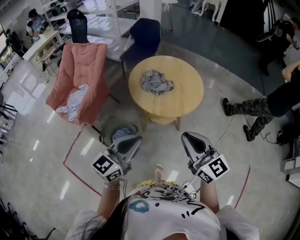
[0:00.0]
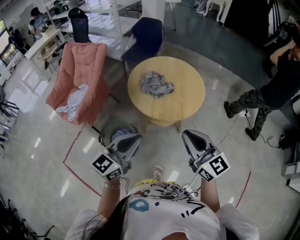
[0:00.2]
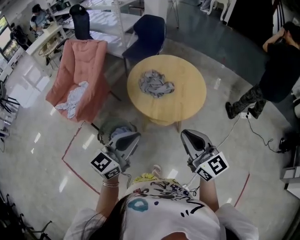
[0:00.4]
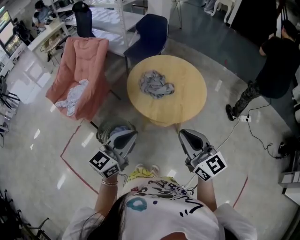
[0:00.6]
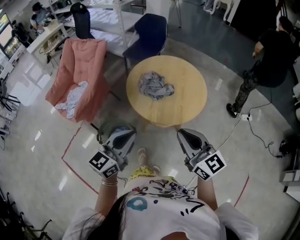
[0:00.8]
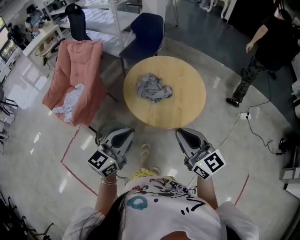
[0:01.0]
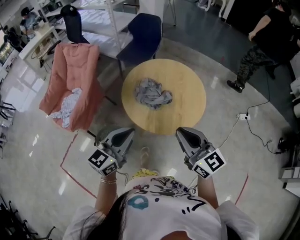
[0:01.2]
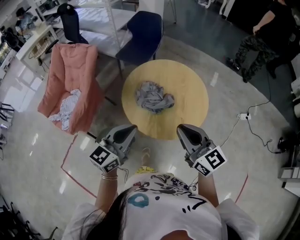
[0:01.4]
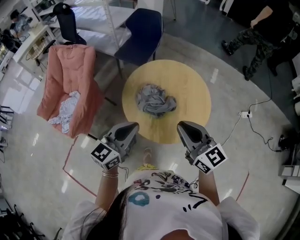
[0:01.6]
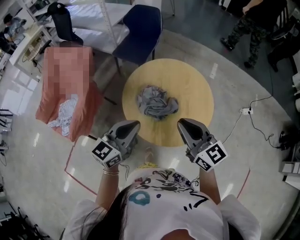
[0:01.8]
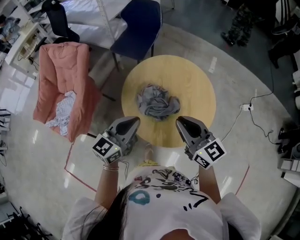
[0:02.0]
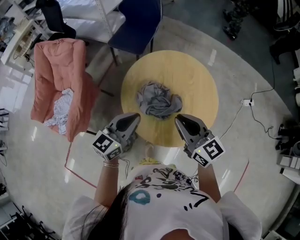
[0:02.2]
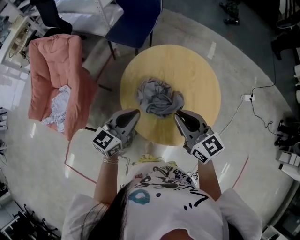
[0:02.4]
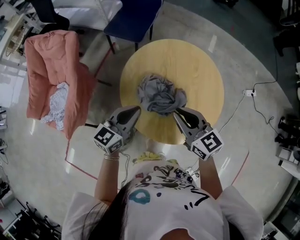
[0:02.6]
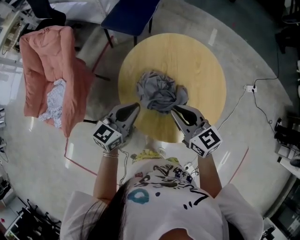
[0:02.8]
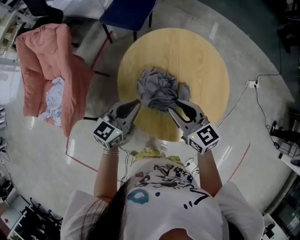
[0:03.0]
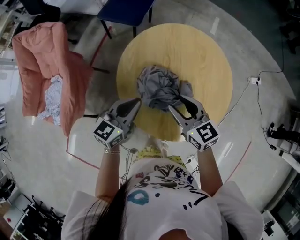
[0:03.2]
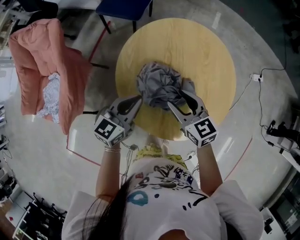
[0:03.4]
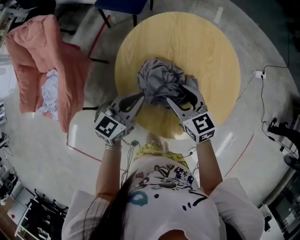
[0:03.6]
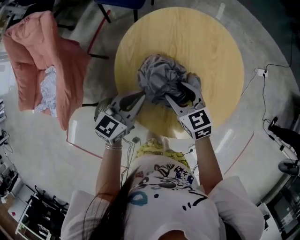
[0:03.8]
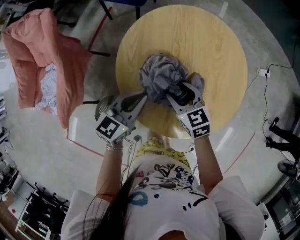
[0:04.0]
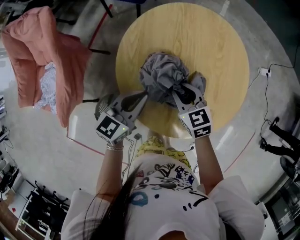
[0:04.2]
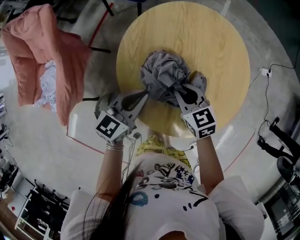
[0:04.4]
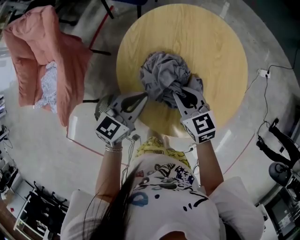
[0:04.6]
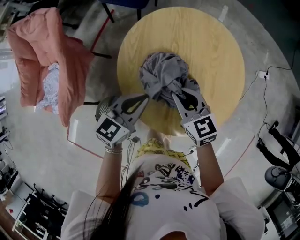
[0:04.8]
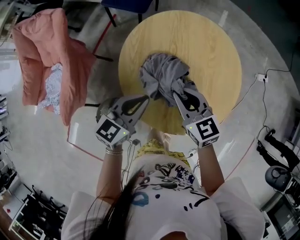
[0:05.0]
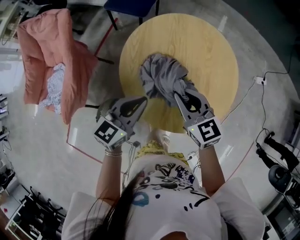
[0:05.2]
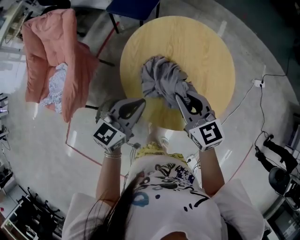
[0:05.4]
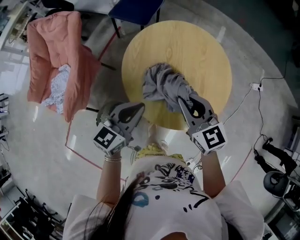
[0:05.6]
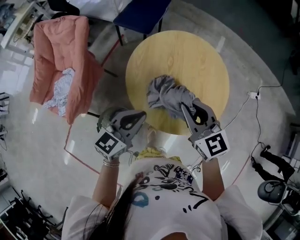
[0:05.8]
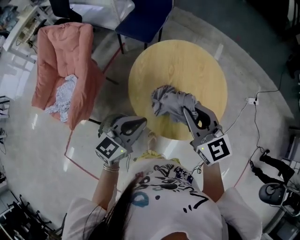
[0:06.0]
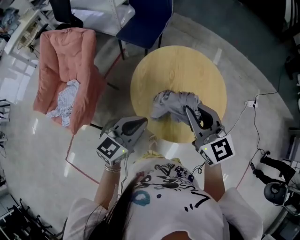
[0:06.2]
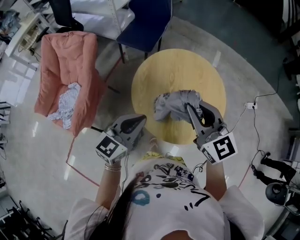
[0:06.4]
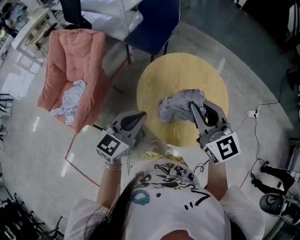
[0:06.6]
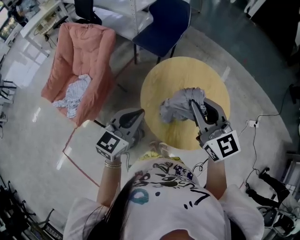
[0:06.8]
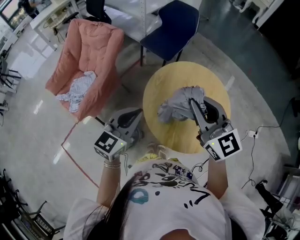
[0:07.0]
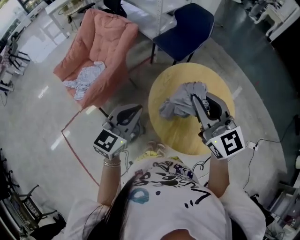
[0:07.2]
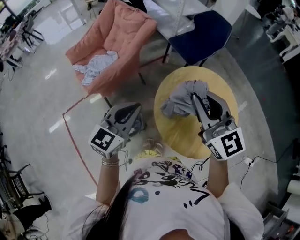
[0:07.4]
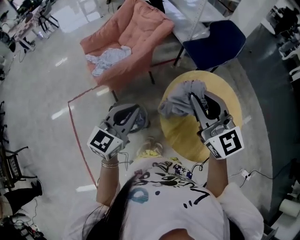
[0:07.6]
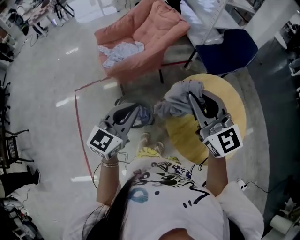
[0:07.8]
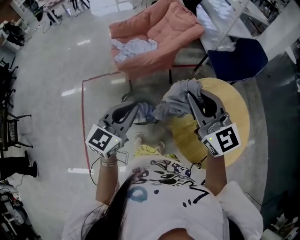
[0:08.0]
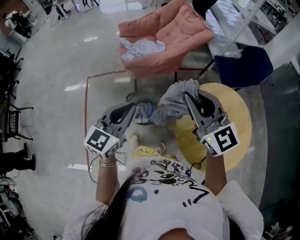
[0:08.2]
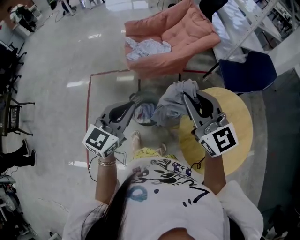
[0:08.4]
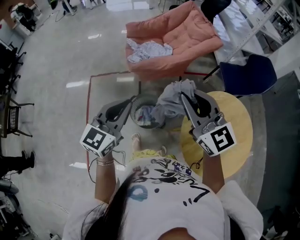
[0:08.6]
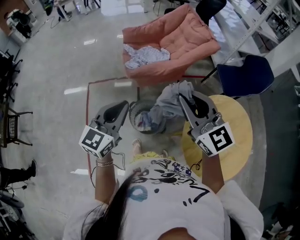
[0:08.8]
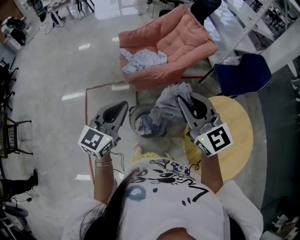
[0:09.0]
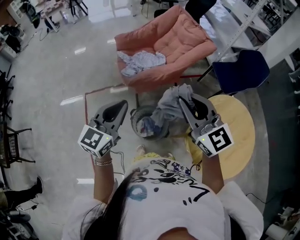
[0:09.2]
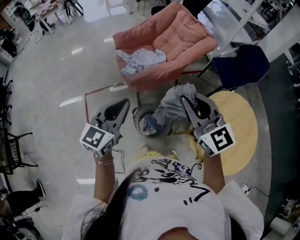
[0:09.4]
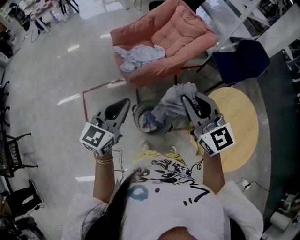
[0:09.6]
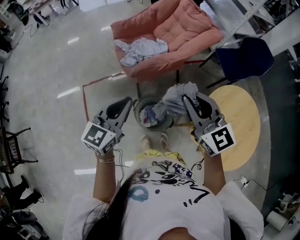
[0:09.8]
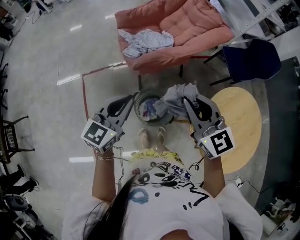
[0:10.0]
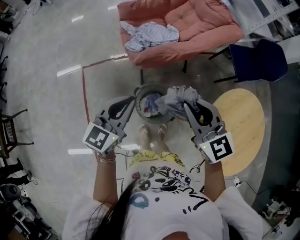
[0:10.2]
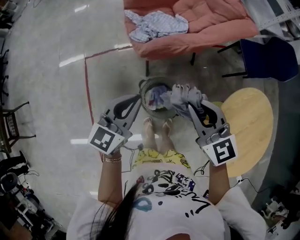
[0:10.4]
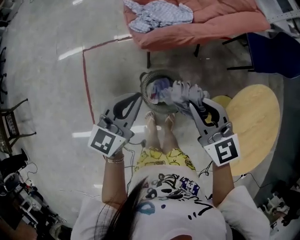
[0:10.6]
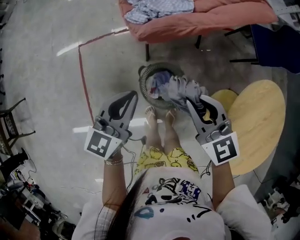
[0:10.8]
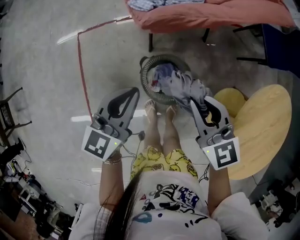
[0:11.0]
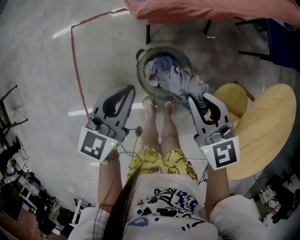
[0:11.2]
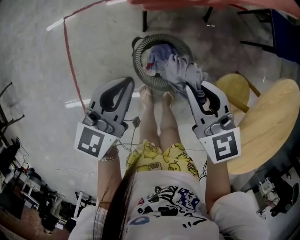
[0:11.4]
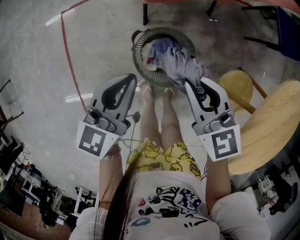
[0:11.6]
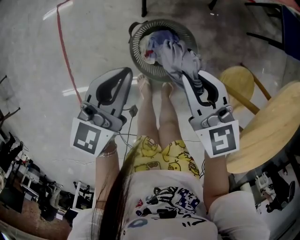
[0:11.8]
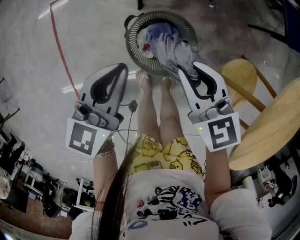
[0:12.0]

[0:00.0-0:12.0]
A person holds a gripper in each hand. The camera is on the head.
0:00.0 to 0:01.6: The grippers both shift forward by approximately 30 cm.
0:01.6 to 0:03.0: The left gripper heads forward and downward, covering approximately 25 cm, while the right gripper heads downward, forward and to the left, covering some 25 cm, and turns by about 20 degrees.
0:03.0 to 0:04.4: The right gripper heads downward, covering some 15 cm, and opens and closes again, while the left gripper is displaced downward by roughly 10 cm.
0:04.4 to 0:06.0: The right gripper travels upward by about 25 cm, and turns by about 30 degrees. Meanwhile the left gripper is displaced upward and backward by approximately 20 cm.
0:06.0 to 0:07.6: The right gripper travels upward by about 10 cm, and changes its angle by about 40 degrees. The left gripper moves approximately 15 cm, and swivels approximately 50 degrees.
0:07.6 to 0:09.0: The left gripper travels to the left by some 20 cm, and changes its angle by about 20 degrees; the right gripper travels to the left and forward by some 25 cm.
0:09.0 to 0:10.4: The right gripper shifts about 20 cm downward, to the left and forward. Meanwhile the left gripper travels downward and forward by some 15 cm.
0:10.4 to 0:12.0: The grippers both shift downward by some 25 cm.

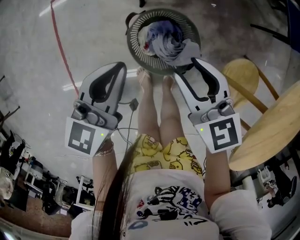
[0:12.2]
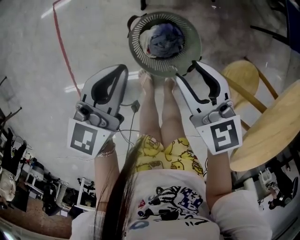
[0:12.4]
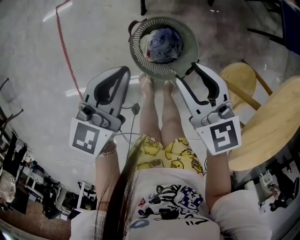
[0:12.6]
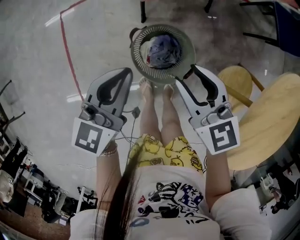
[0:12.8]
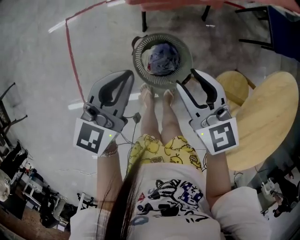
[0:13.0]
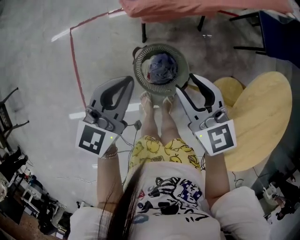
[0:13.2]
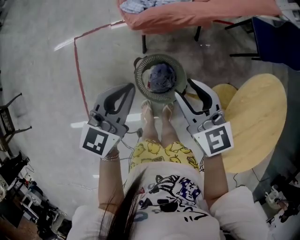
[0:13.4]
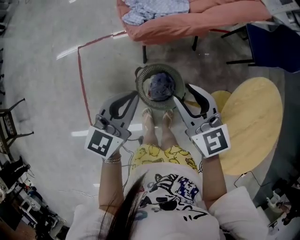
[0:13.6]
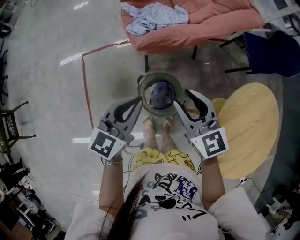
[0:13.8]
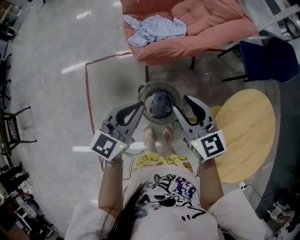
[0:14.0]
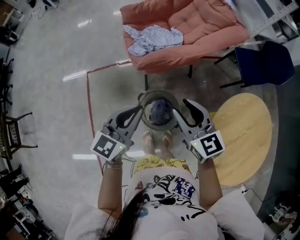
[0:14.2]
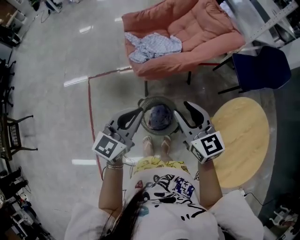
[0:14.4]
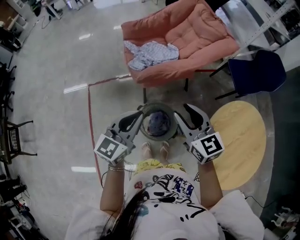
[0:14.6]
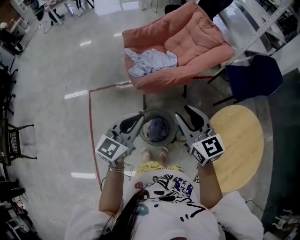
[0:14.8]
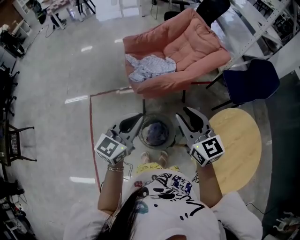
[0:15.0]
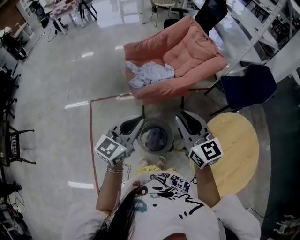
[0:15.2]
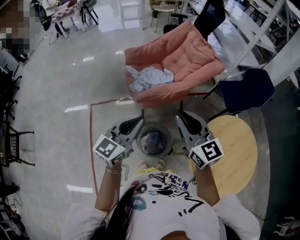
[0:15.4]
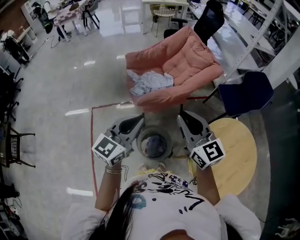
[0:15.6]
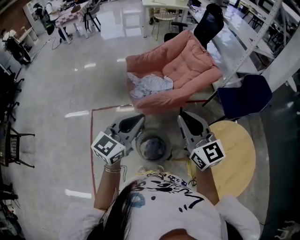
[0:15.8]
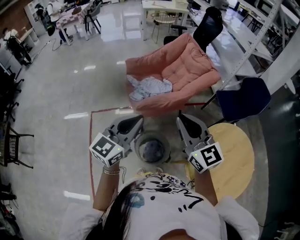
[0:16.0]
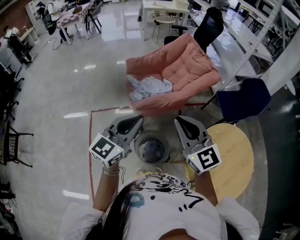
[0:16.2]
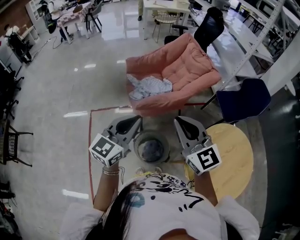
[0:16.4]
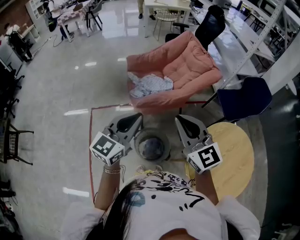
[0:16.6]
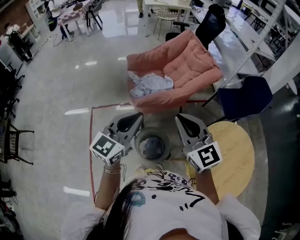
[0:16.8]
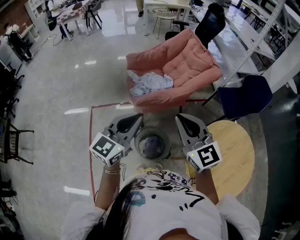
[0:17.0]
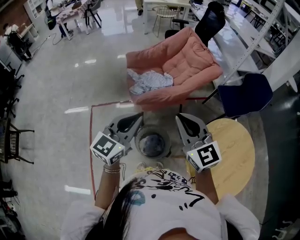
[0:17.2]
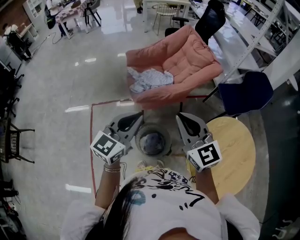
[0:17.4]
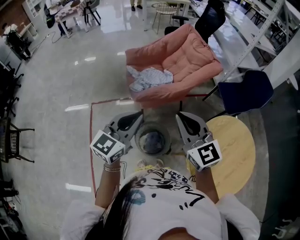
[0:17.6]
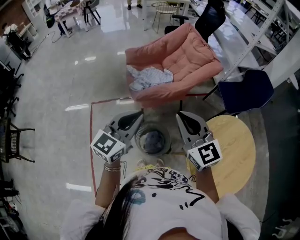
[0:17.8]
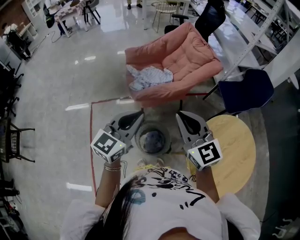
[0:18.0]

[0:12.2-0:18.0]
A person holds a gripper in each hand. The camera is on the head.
0:12.2 to 0:13.6: The grippers both shift upward by about 20 cm.
0:13.6 to 0:15.0: The grippers both shift upward by approximately 15 cm.
0:15.0 to 0:16.6: Both grippers move upward, some 10 cm. The right gripper closes.
0:16.6 to 0:18.0: The grippers move only a little.

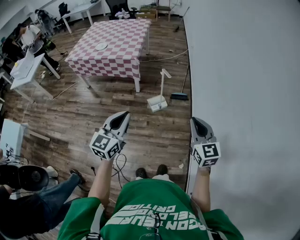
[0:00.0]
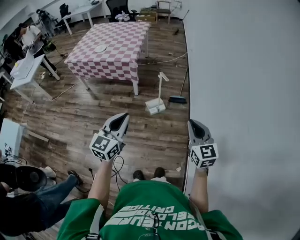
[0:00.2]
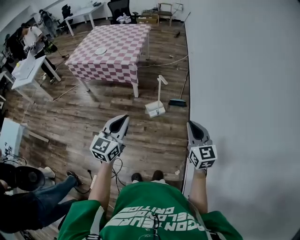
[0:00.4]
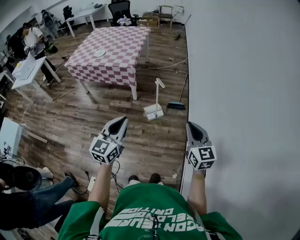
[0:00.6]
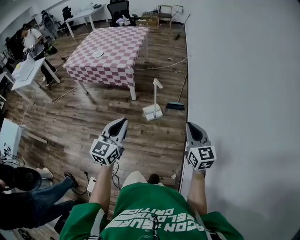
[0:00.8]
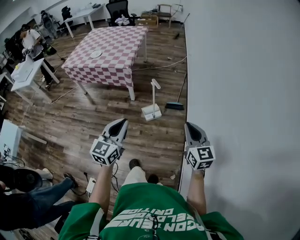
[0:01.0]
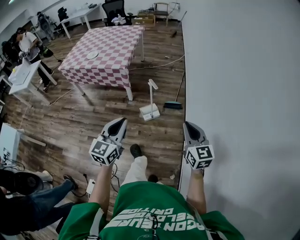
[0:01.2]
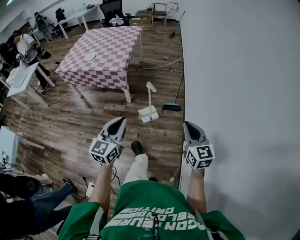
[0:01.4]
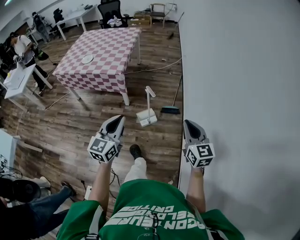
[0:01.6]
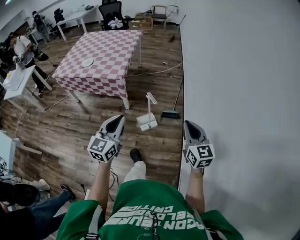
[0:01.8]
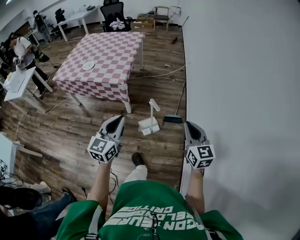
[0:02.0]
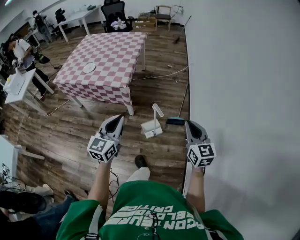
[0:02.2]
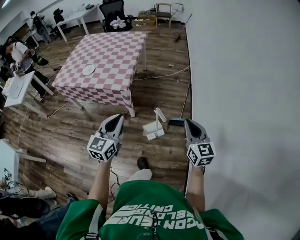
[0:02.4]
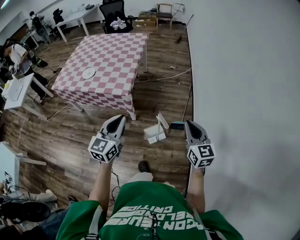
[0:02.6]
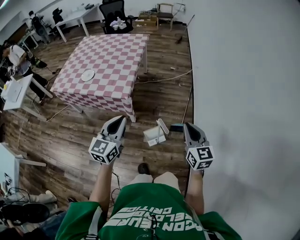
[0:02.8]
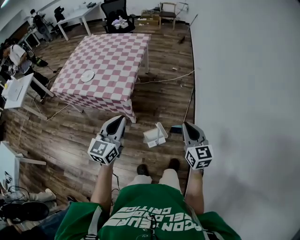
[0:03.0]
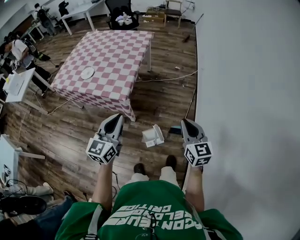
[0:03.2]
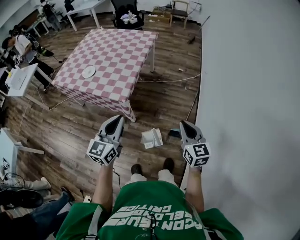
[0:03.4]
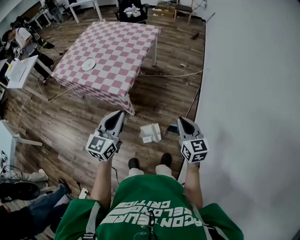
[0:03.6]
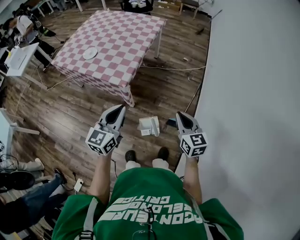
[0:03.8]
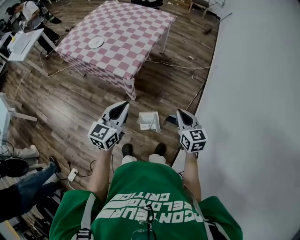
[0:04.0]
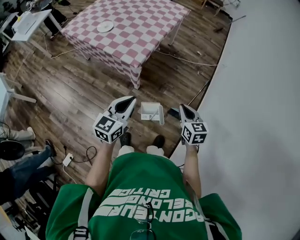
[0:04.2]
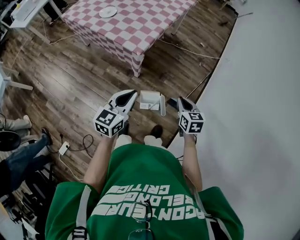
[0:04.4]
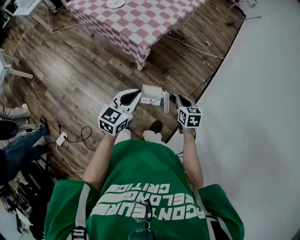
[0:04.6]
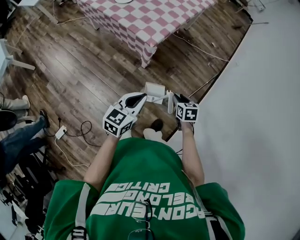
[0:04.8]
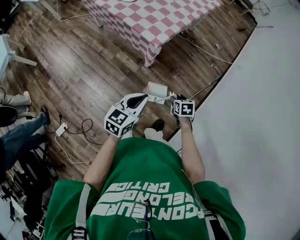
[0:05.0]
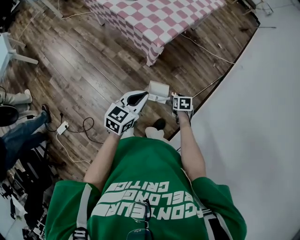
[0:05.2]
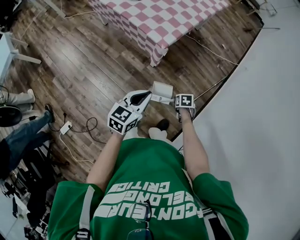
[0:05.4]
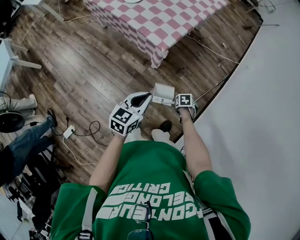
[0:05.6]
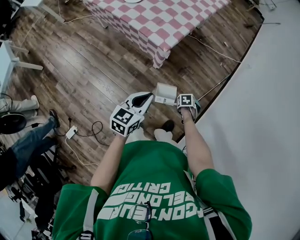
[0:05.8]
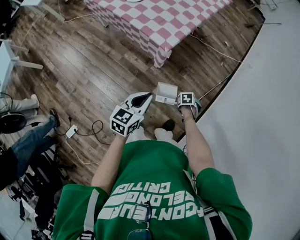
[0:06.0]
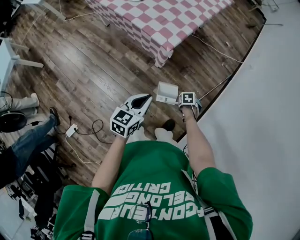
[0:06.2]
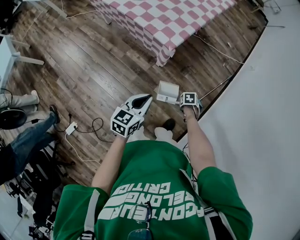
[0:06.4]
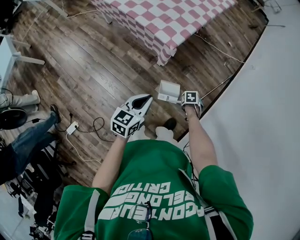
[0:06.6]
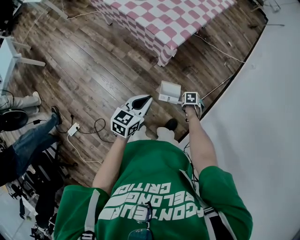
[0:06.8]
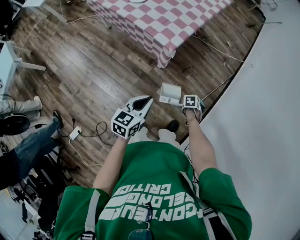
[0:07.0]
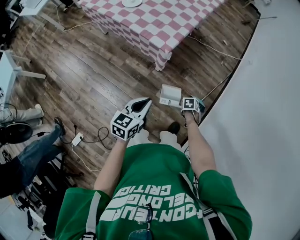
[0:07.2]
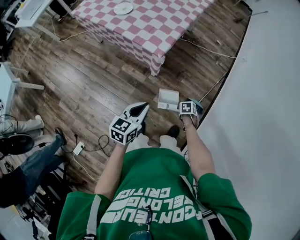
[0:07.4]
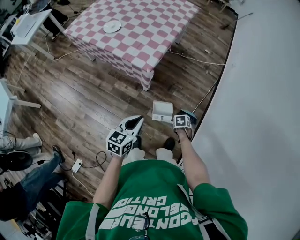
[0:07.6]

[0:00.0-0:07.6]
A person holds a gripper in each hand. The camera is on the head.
0:00.0 to 0:01.6: The two grippers go approximately 20 cm forward and to the right.
0:01.6 to 0:03.0: Both grippers move forward, about 35 cm.
0:03.0 to 0:04.6: The left gripper moves downward, roughly 15 cm, and changes its angle by some 20 degrees. The right gripper heads downward and forward, covering approximately 25 cm, and tips its fingers downward by roughly 40 degrees.
0:04.6 to 0:06.0: The right gripper heads downward, covering roughly 25 cm, angles its fingers downward, by some 40 degrees, and opens its fingers; the left gripper changes place by about 10 cm.
0:06.0 to 0:07.6: The right gripper shifts by approximately 5 cm, and closes up.
